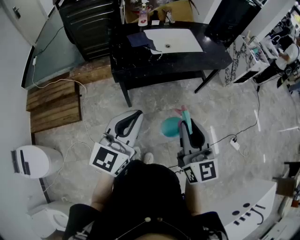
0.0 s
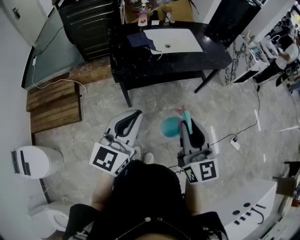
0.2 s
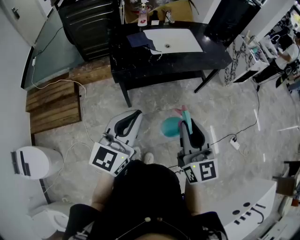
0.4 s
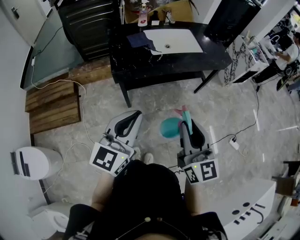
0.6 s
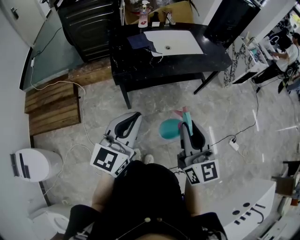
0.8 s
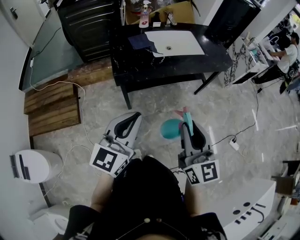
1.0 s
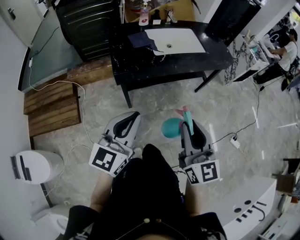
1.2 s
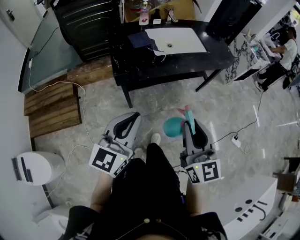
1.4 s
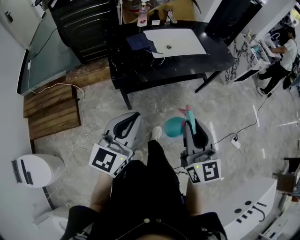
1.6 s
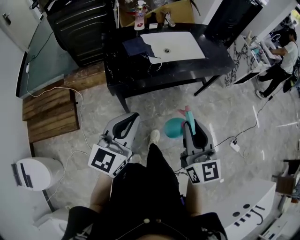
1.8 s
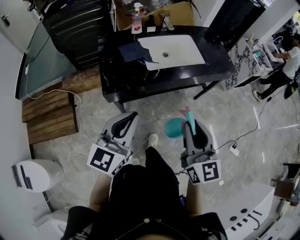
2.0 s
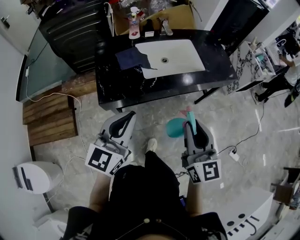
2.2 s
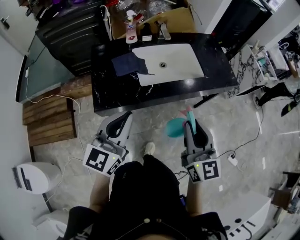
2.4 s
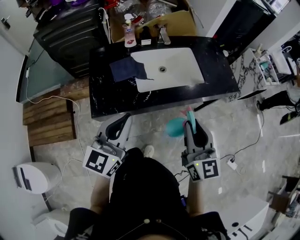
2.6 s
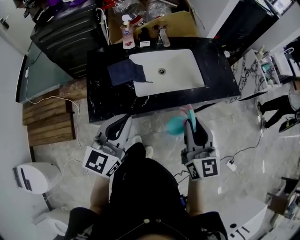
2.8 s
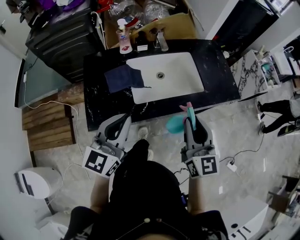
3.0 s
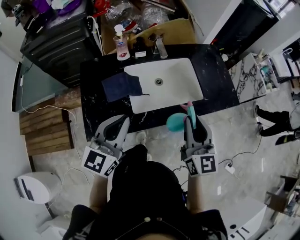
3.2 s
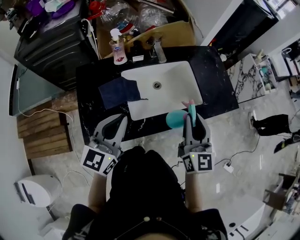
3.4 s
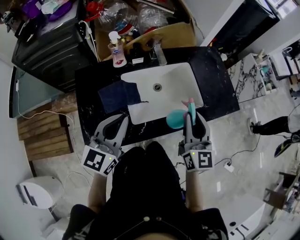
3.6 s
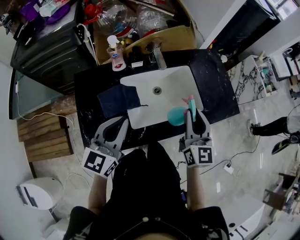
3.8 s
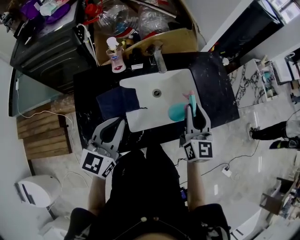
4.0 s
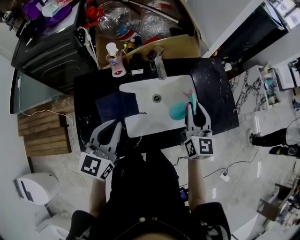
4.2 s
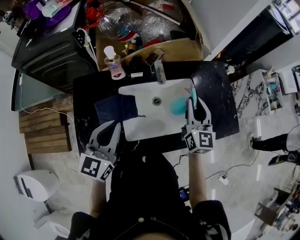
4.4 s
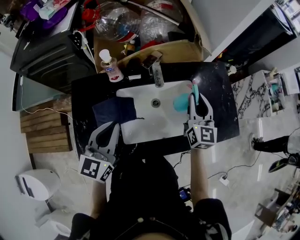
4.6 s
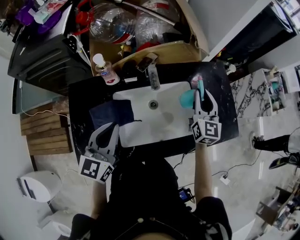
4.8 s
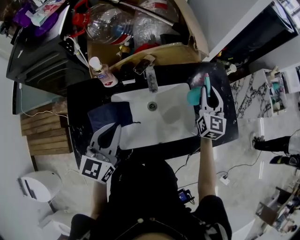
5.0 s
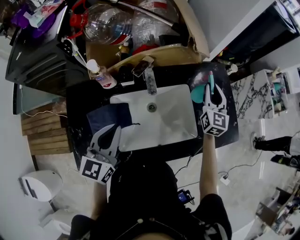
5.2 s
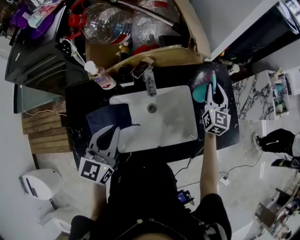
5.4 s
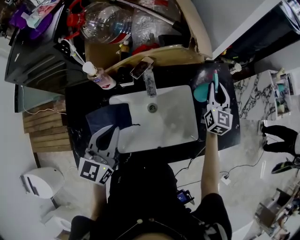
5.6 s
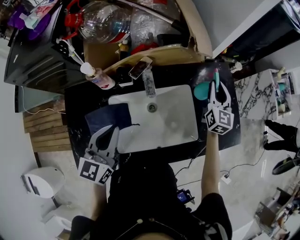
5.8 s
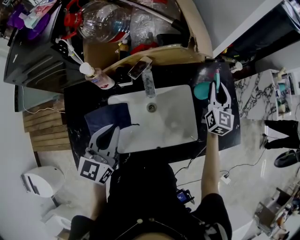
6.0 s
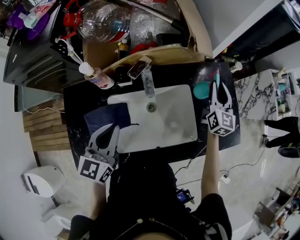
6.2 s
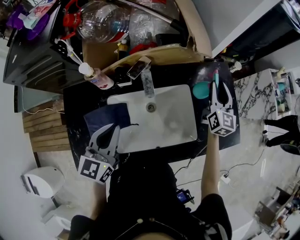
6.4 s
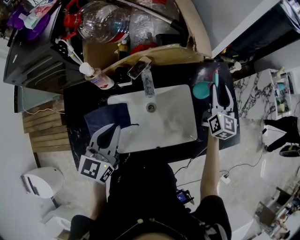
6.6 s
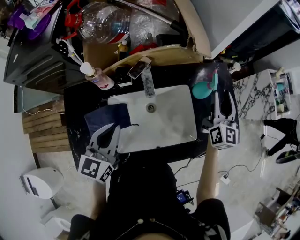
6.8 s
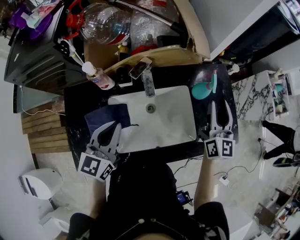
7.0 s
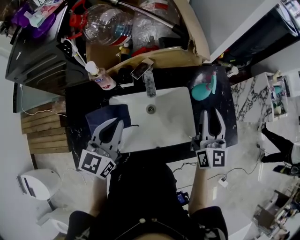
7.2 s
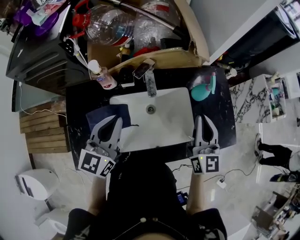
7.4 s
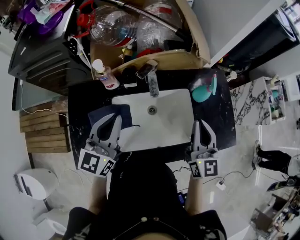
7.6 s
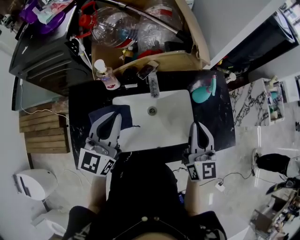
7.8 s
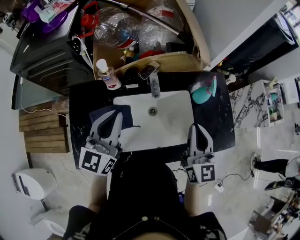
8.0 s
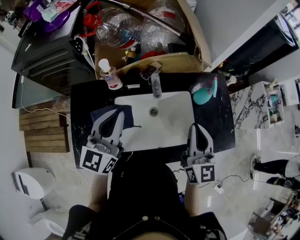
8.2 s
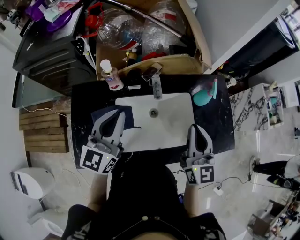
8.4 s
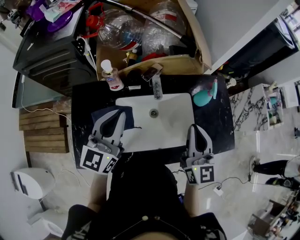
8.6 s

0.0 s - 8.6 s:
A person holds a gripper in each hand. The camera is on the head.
0.0 s - 1.4 s: The right gripper moves roughly 5 cm; the left gripper heads to the left, covering approximately 5 cm.
1.4 s - 2.8 s: The grippers both shift forward by roughly 30 cm.
2.8 s - 4.4 s: The right gripper is displaced forward by some 35 cm. Meanwhile the left gripper shifts roughly 20 cm forward.
4.4 s - 5.8 s: The right gripper heads forward and to the right, covering roughly 20 cm. Meanwhile the left gripper goes approximately 10 cm forward.
5.8 s - 7.2 s: The right gripper is displaced backward and upward by some 15 cm.
7.2 s - 8.6 s: The left gripper is displaced upward by about 5 cm. Meanwhile the right gripper is displaced to the left and backward by some 10 cm, and closes up.

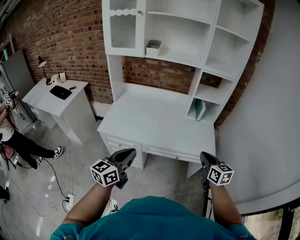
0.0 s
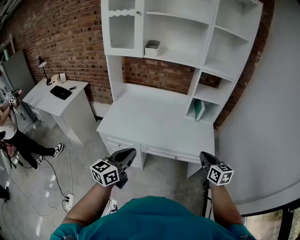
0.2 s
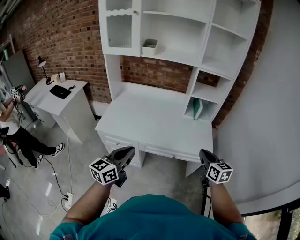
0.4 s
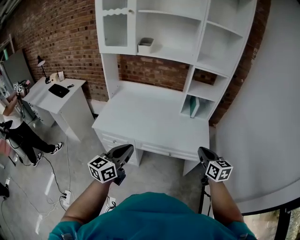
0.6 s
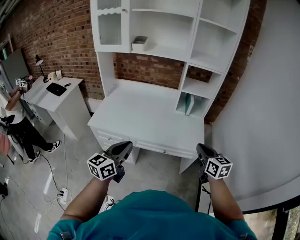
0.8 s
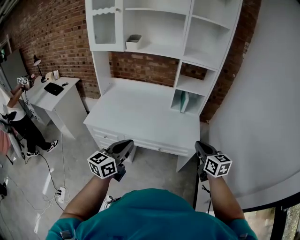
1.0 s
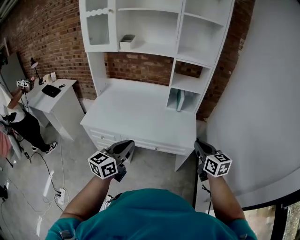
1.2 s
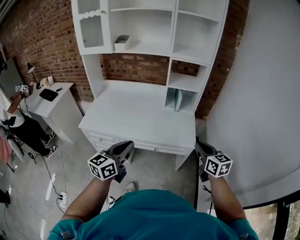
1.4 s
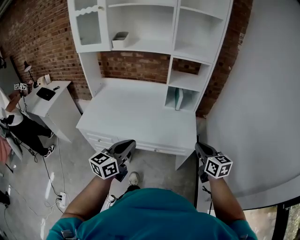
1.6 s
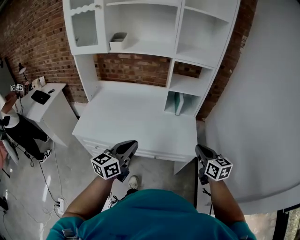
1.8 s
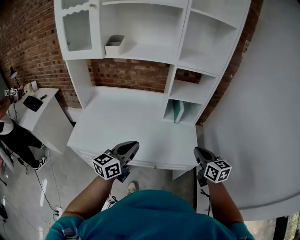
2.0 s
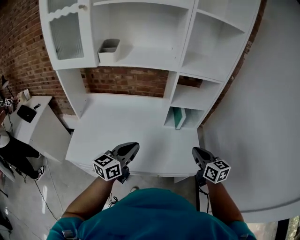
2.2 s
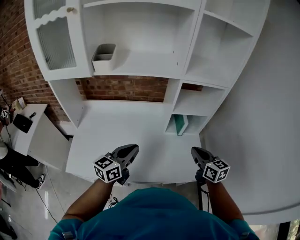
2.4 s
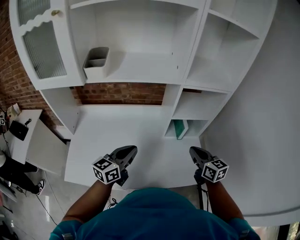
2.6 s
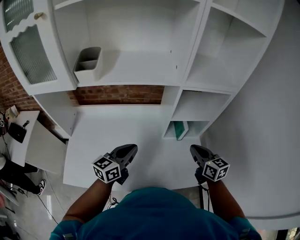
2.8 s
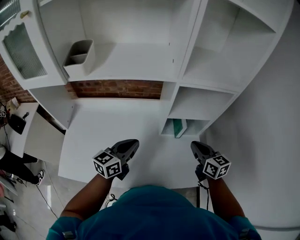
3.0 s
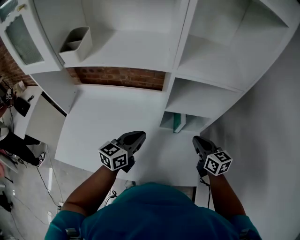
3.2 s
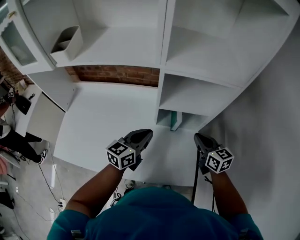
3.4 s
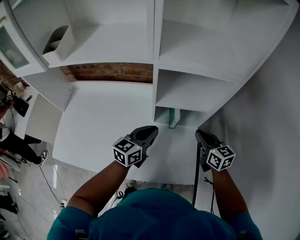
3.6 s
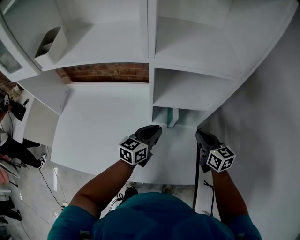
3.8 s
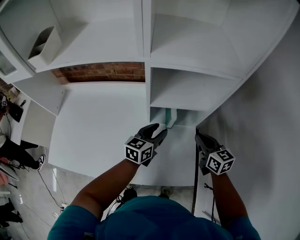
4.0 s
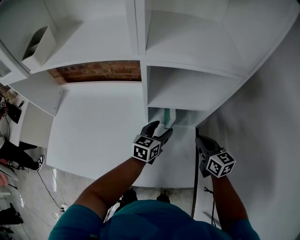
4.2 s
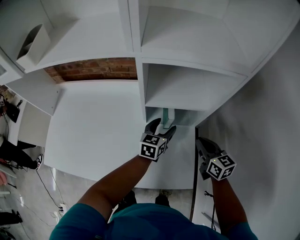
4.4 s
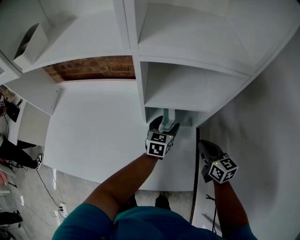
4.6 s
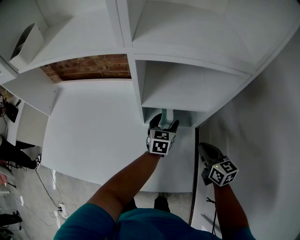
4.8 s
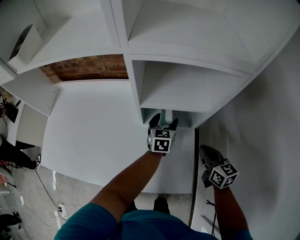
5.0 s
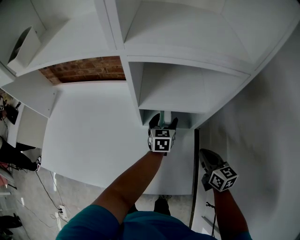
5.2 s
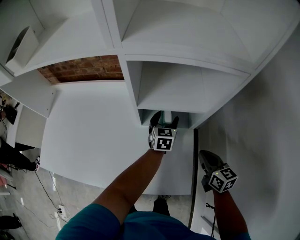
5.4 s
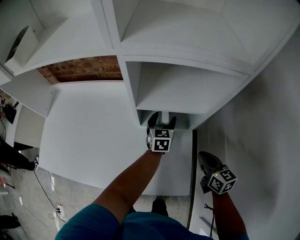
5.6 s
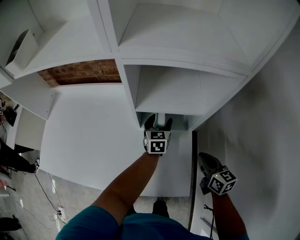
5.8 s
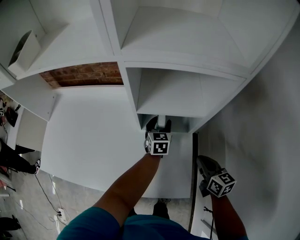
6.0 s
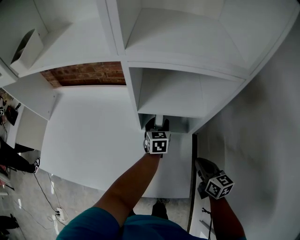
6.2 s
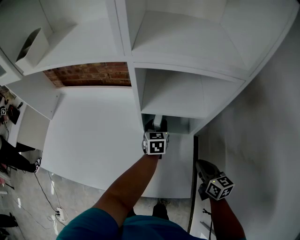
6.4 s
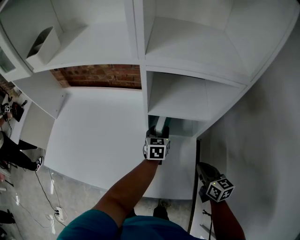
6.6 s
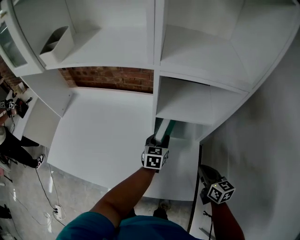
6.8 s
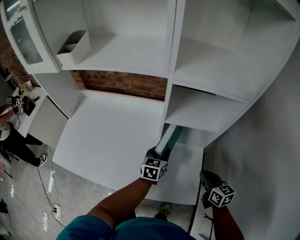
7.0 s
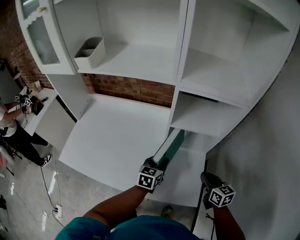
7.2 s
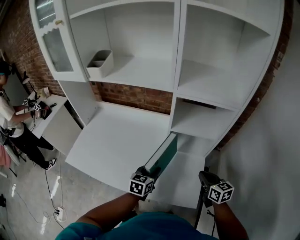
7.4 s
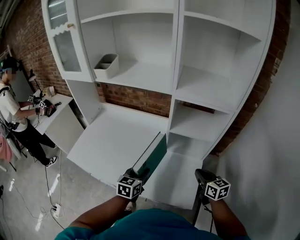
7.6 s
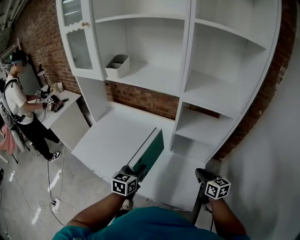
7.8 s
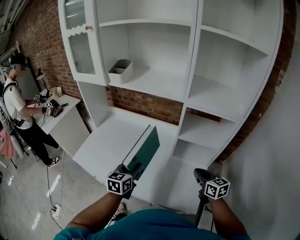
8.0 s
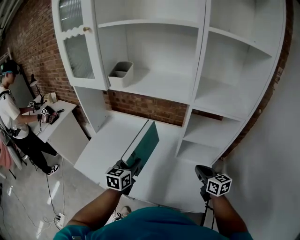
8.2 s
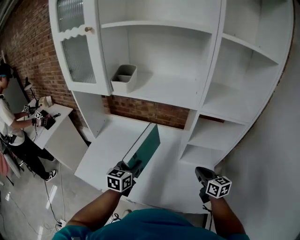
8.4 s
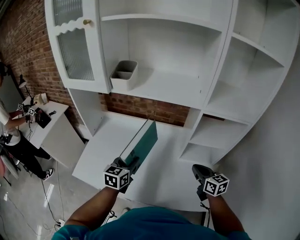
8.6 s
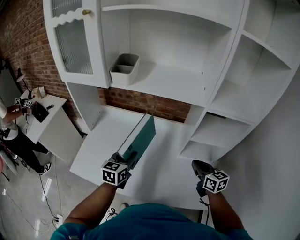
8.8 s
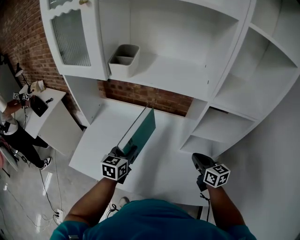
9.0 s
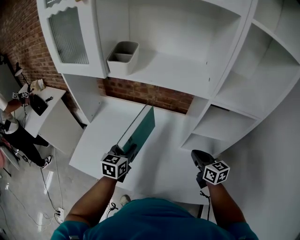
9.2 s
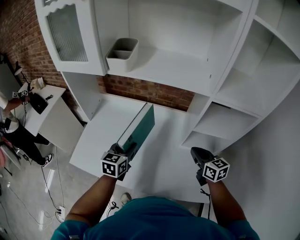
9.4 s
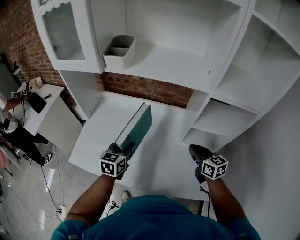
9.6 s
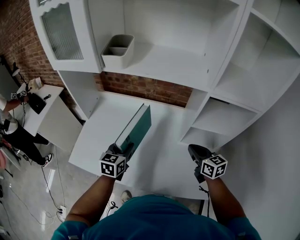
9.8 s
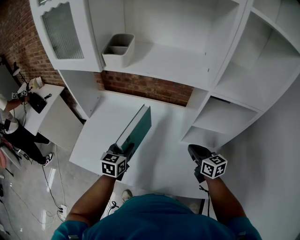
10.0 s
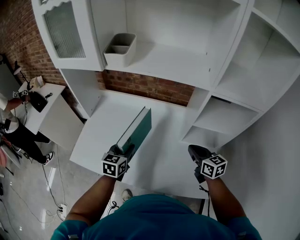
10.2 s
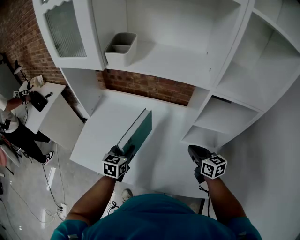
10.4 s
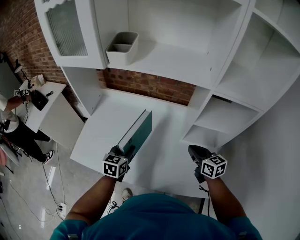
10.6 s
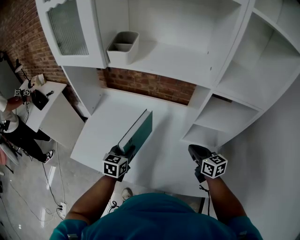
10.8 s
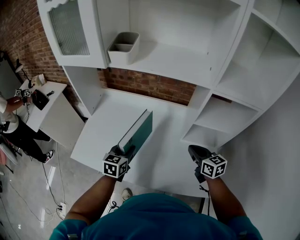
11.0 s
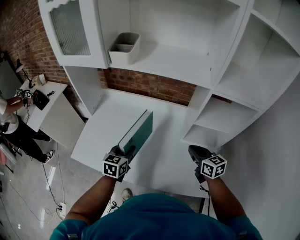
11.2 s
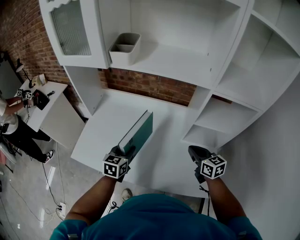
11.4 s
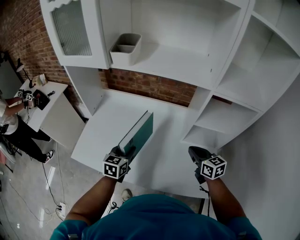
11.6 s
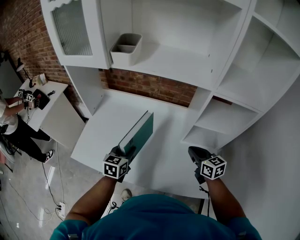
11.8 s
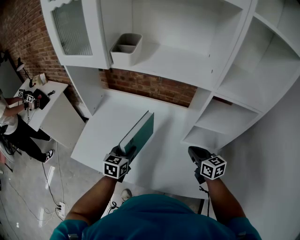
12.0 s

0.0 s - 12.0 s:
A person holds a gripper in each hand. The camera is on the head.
0.0 s - 1.6 s: The grippers both shift to the right by some 15 cm.
1.6 s - 3.0 s: Both grippers move forward, approximately 35 cm.
3.0 s - 4.4 s: The left gripper travels to the right, downward and forward by some 30 cm, and opens up; the right gripper travels to the right and downward by some 15 cm.
4.4 s - 6.0 s: The left gripper goes some 5 cm forward. Meanwhile the right gripper shifts by some 5 cm.
6.0 s - 7.6 s: The left gripper heads backward, to the left and upward, covering roughly 35 cm; the right gripper is displaced to the left and upward by approximately 10 cm.
7.6 s - 9.0 s: The two grippers go roughly 20 cm to the left and forward.
9.0 s - 10.4 s: The left gripper moves downward, about 5 cm.
10.4 s - 12.0 s: Both grippers stay put.

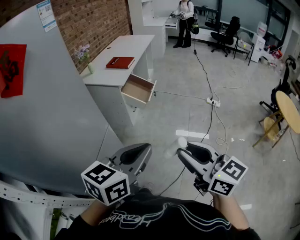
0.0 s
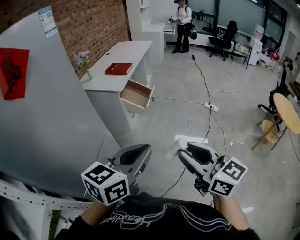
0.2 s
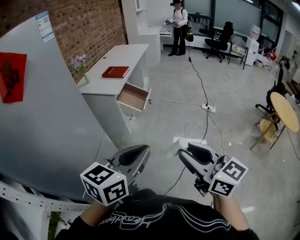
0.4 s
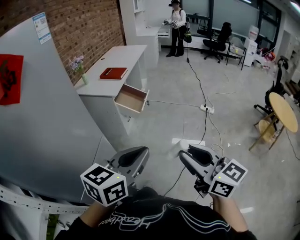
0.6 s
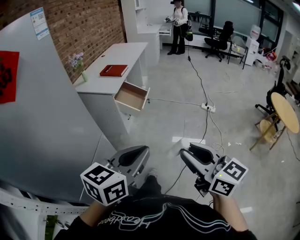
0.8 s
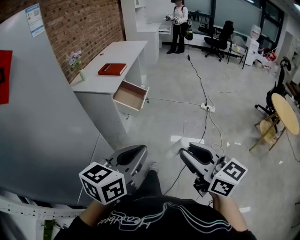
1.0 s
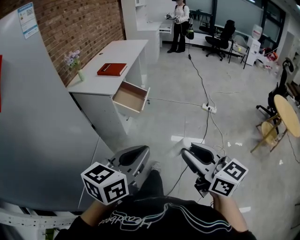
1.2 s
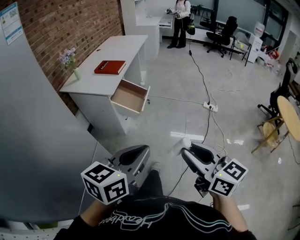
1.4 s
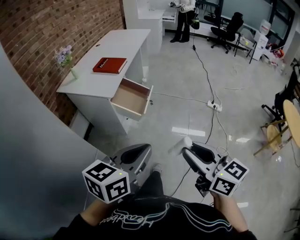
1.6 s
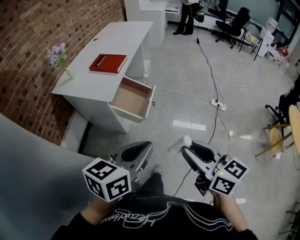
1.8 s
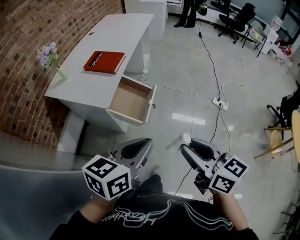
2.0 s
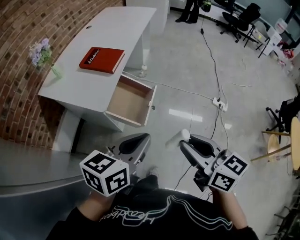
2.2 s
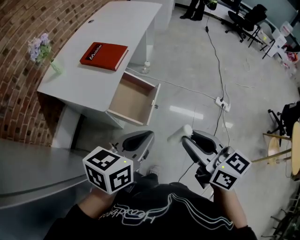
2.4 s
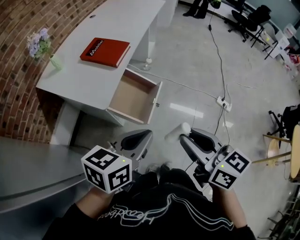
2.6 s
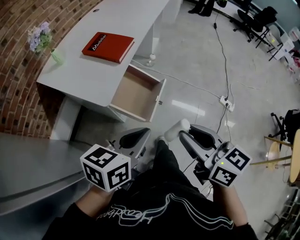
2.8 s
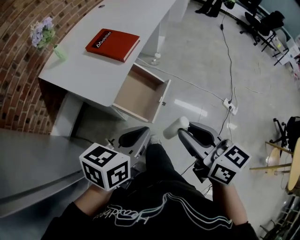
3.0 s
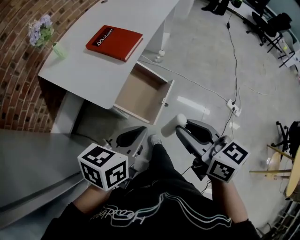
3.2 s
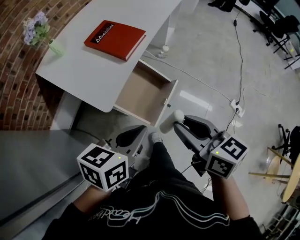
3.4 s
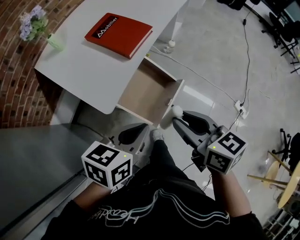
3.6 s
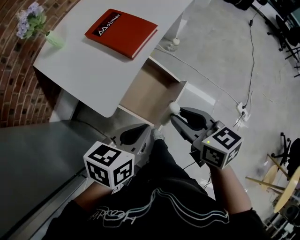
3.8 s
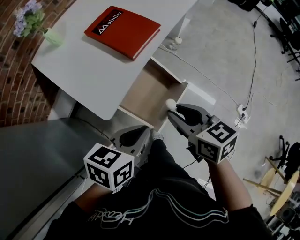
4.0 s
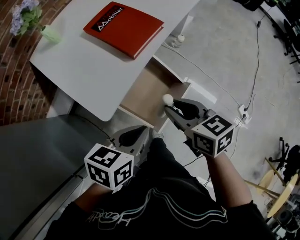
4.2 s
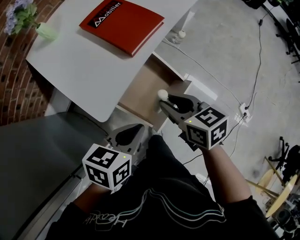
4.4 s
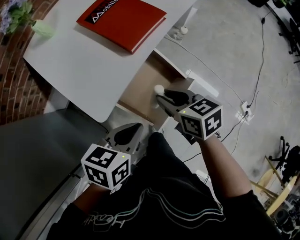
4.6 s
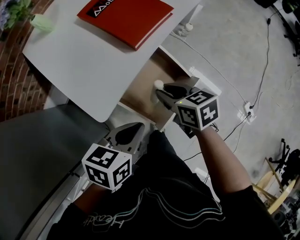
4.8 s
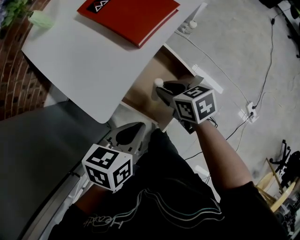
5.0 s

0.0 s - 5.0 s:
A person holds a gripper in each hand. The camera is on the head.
0.0 s - 1.6 s: The two grippers go about 25 cm forward.
1.6 s - 3.4 s: The pair of grippers is taken forward, some 50 cm. The left gripper changes its angle by roughly 20 degrees. Meanwhile the right gripper swivels roughly 20 degrees.
3.4 s - 5.0 s: The right gripper goes roughly 35 cm downward and forward, and rotates some 30 degrees, while the left gripper shifts approximately 20 cm downward and forward, and rotates approximately 20 degrees.
